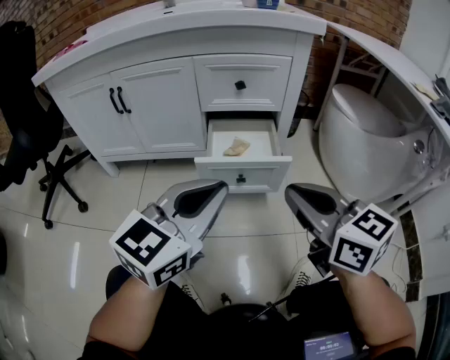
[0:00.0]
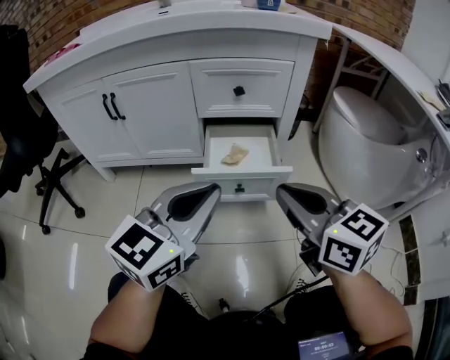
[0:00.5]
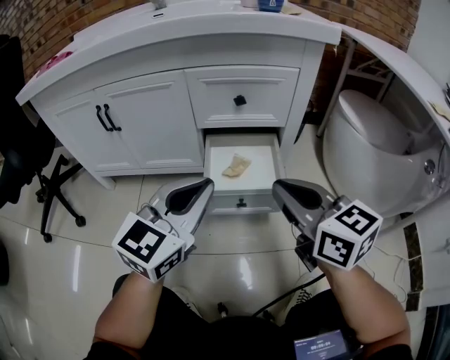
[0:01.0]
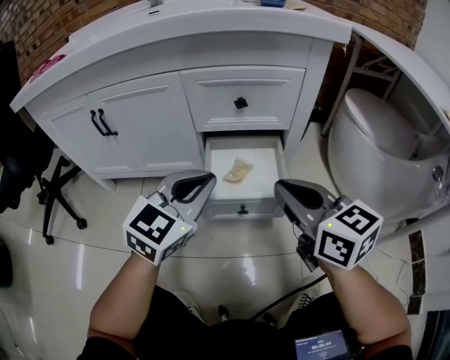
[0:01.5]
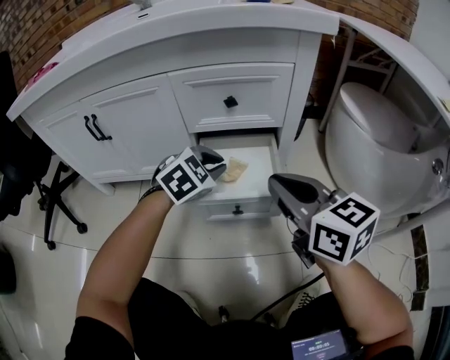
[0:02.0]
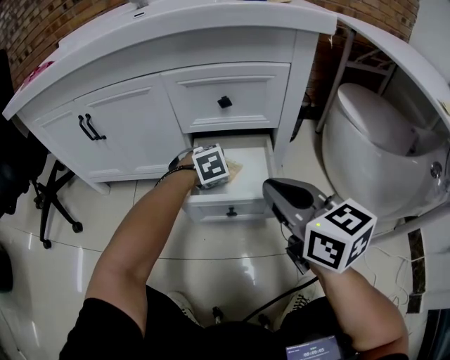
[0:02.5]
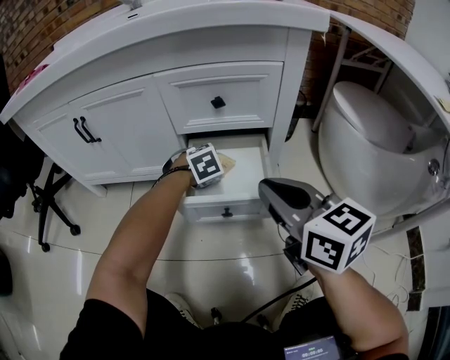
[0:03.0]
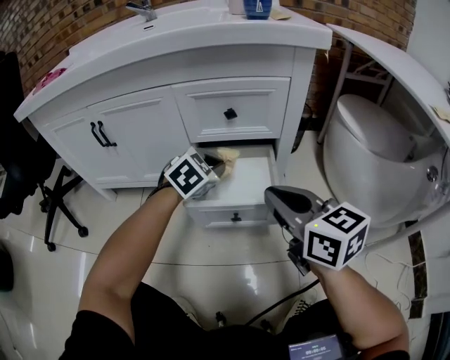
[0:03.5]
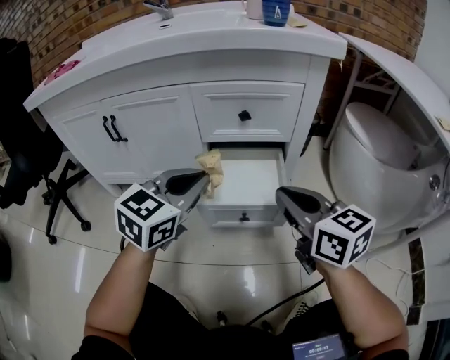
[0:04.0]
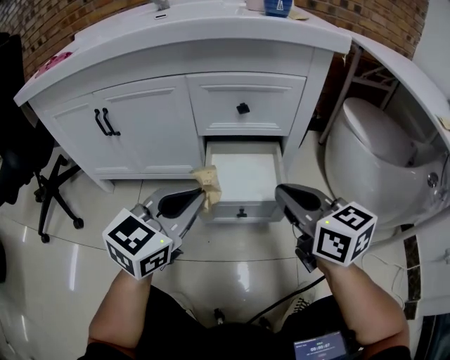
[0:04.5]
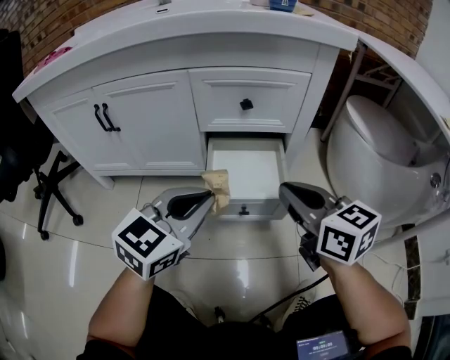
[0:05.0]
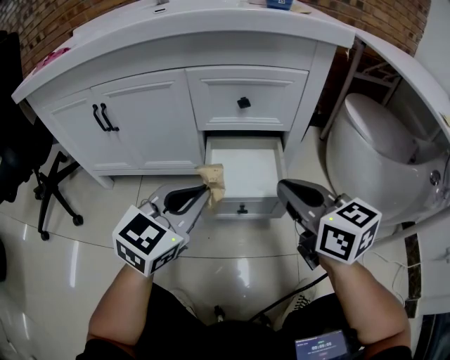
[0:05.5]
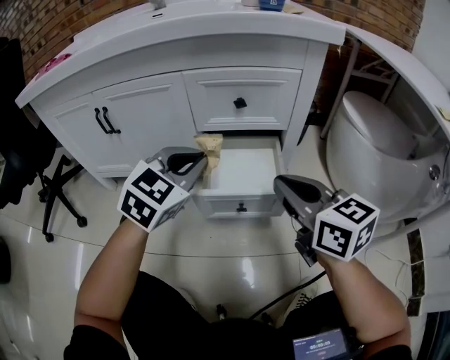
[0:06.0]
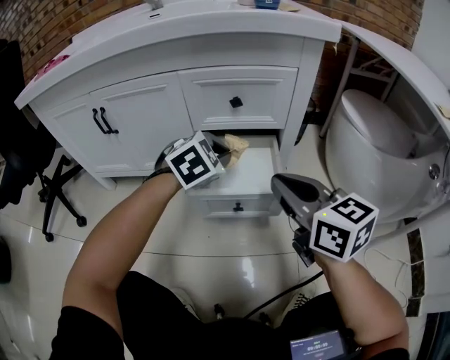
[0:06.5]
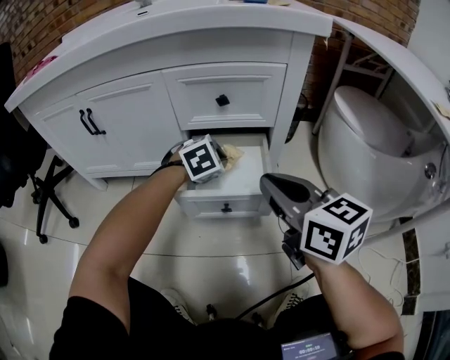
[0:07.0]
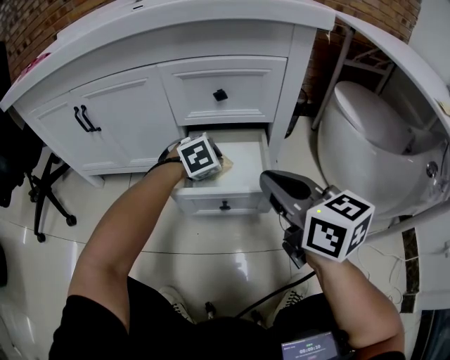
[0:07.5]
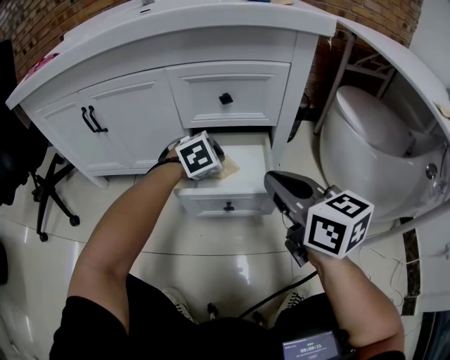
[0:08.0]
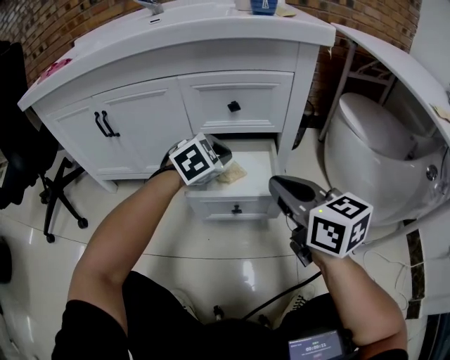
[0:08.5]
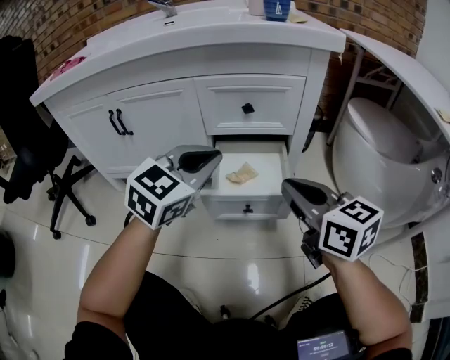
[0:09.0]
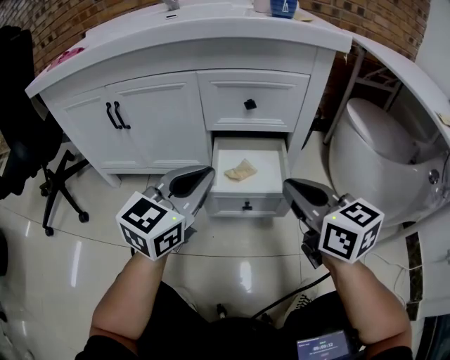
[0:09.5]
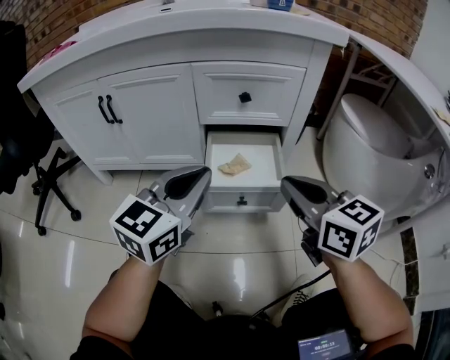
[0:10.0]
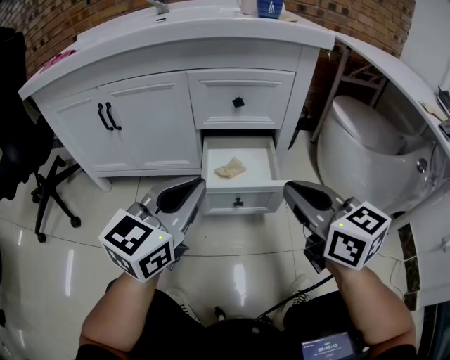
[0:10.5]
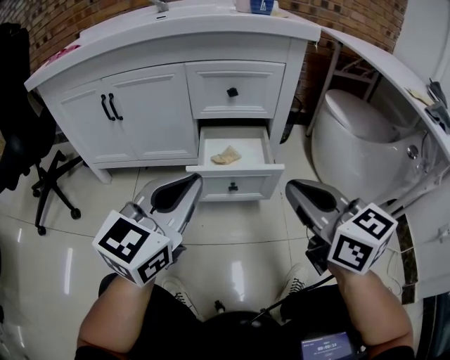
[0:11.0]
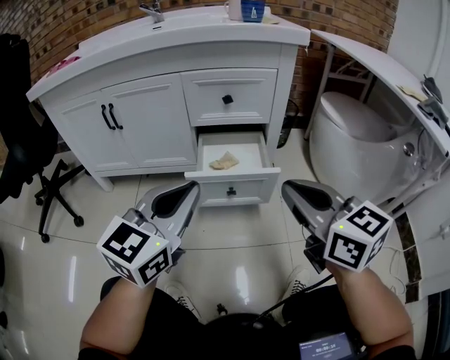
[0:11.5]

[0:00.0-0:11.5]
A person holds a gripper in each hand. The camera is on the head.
0.0 to 2.0 s: The left gripper moves forward and downward, some 30 cm, and tilts its fingers about 40 degrees downward. Meanwhile the right gripper goes approximately 15 cm forward.
2.0 to 4.0 s: The left gripper shifts about 15 cm upward, backward and to the left, and changes its angle by roughly 40 degrees.
4.0 to 6.0 s: The grippers move only a little.
6.0 to 7.5 s: The left gripper heads downward, forward and to the right, covering approximately 20 cm, and points its fingers roughly 30 degrees further downward.
7.5 to 9.5 s: The left gripper goes approximately 25 cm upward, backward and to the left, and tips its fingers upward by some 50 degrees.
9.5 to 11.5 s: Both grippers move backward, approximately 10 cm.

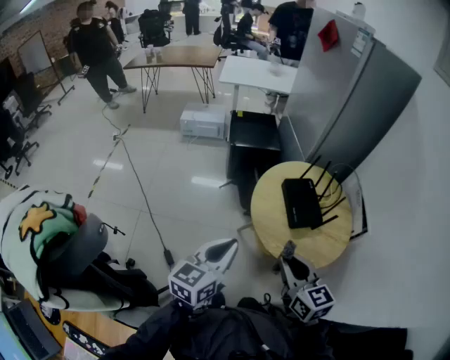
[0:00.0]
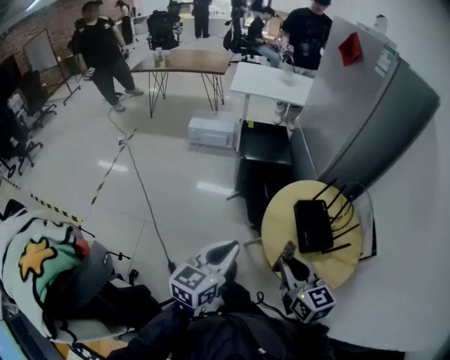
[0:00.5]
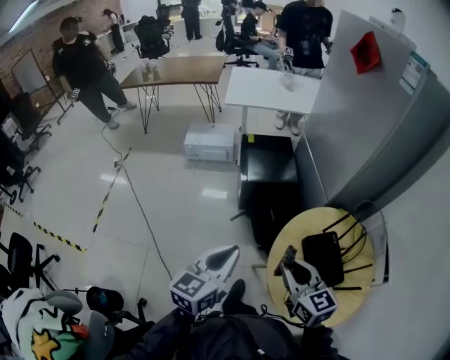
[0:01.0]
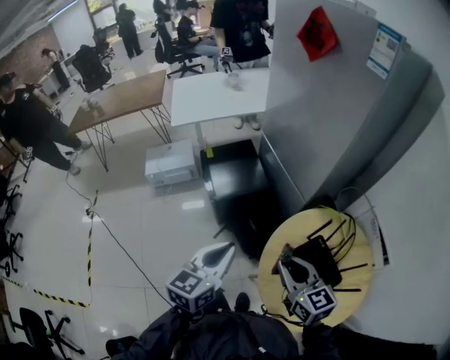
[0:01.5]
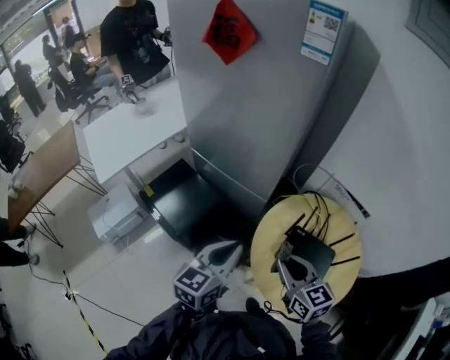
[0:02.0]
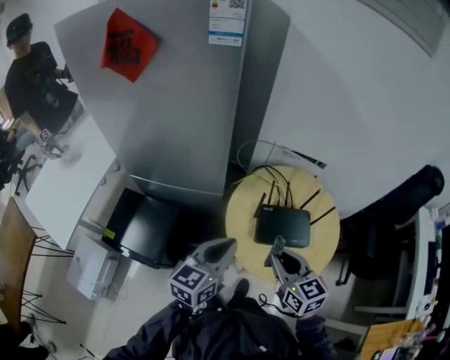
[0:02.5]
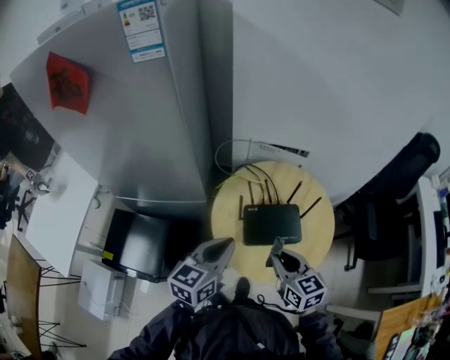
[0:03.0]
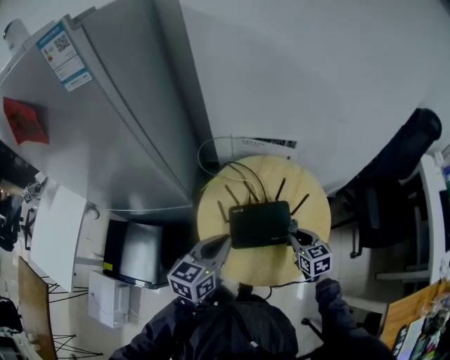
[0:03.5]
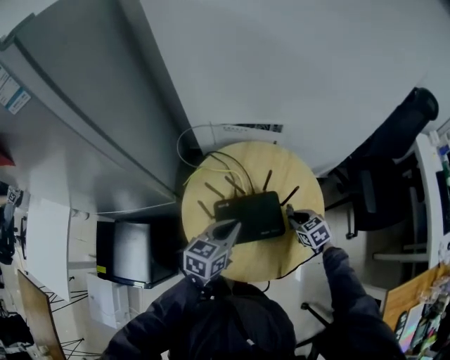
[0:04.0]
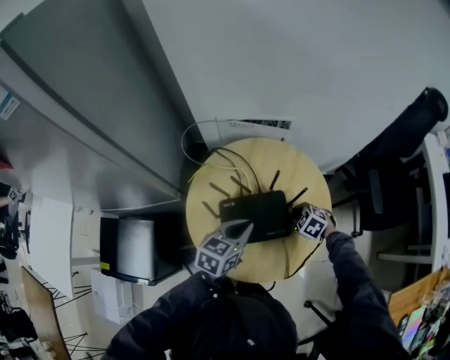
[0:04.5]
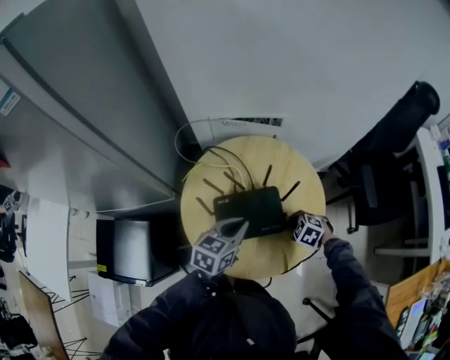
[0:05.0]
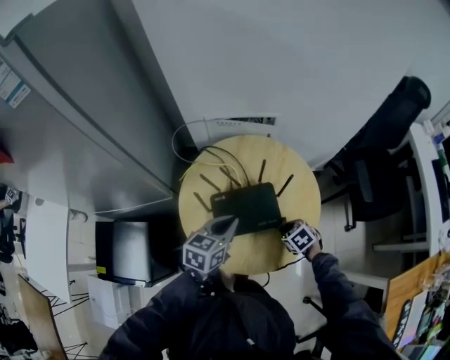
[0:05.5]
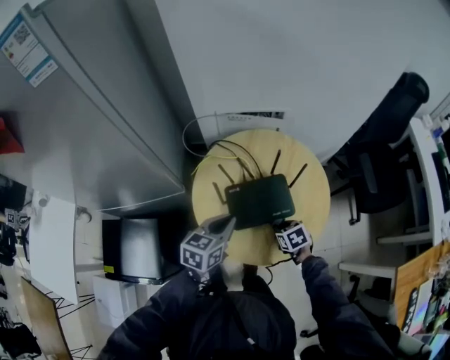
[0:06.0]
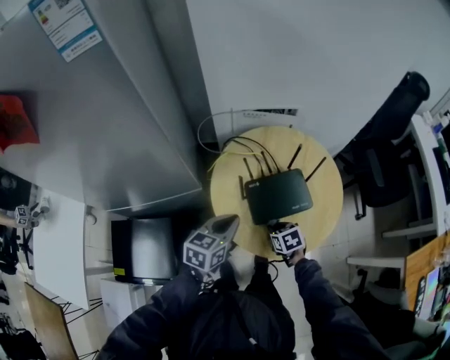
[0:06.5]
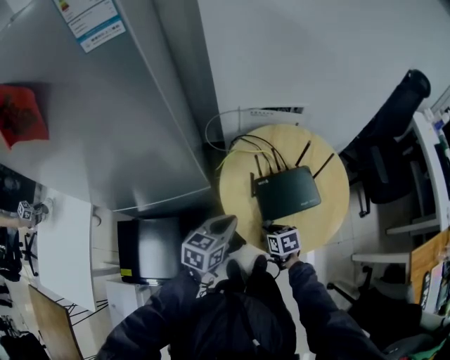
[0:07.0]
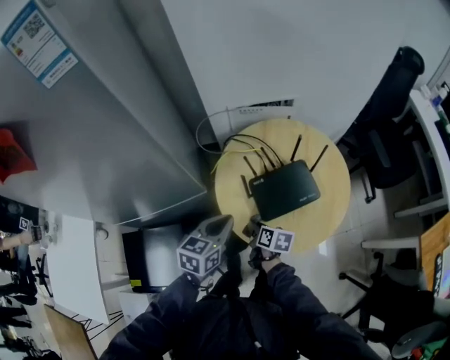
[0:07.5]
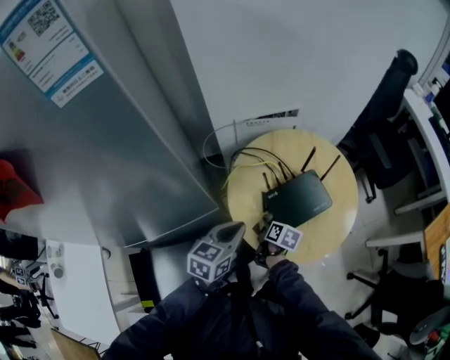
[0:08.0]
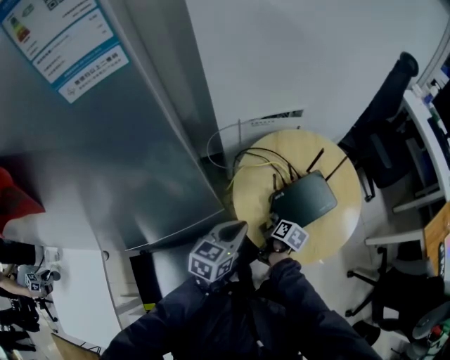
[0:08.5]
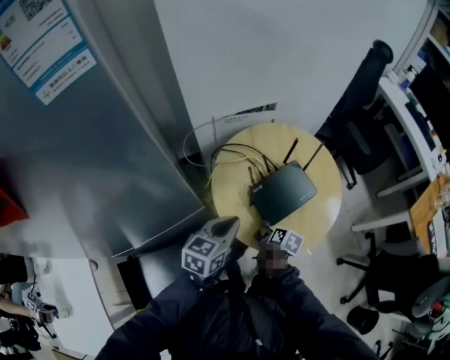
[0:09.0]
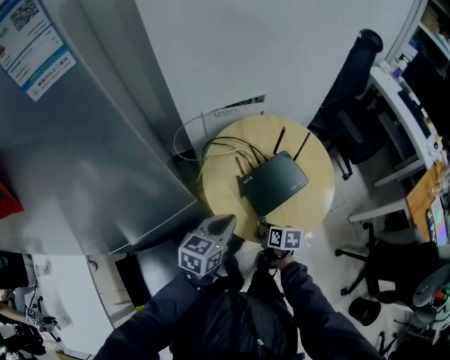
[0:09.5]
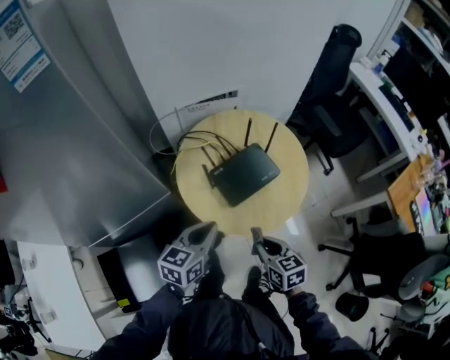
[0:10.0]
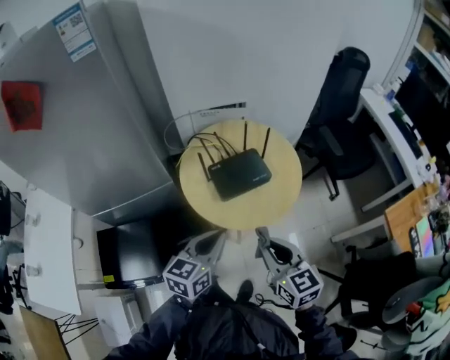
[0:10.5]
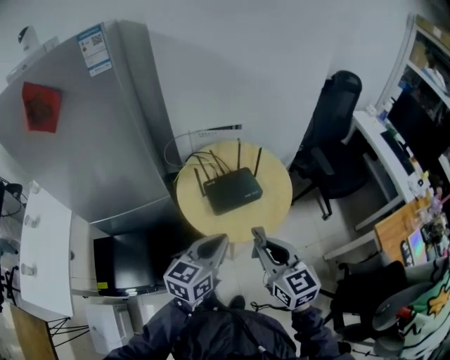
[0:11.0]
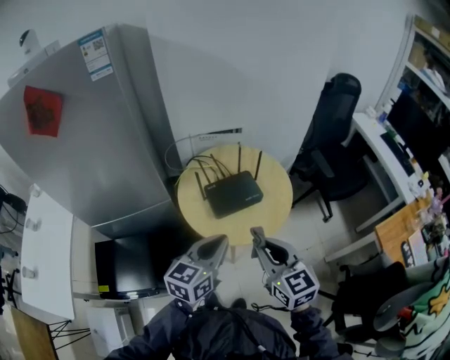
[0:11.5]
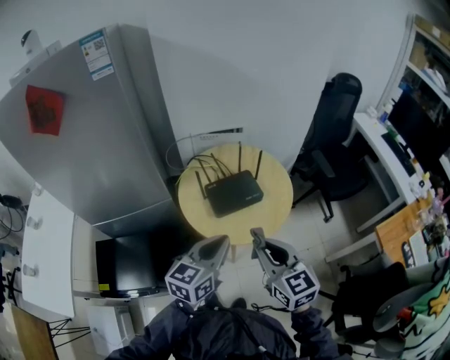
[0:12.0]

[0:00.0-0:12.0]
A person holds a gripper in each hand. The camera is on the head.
0.0 to 2.0 s: Both grippers are carried approximately 50 cm. The left gripper swivels about 50 degrees; the right gripper changes its angle by approximately 40 degrees.
2.0 to 4.0 s: The left gripper shifts by roughly 30 cm, and turns by approximately 50 degrees, while the right gripper changes place by roughly 40 cm, and tilts its fingers some 30 degrees downward.
4.0 to 6.0 s: The right gripper shifts approximately 15 cm to the left and backward; the left gripper moves to the left, about 5 cm.
6.0 to 8.0 s: The left gripper moves to the left, roughly 15 cm; the right gripper is displaced to the left by approximately 20 cm, and rotates around the line of its fingers by some 60 degrees, clockwise from behind.
8.0 to 10.0 s: The left gripper heads to the right and backward, covering some 10 cm. Meanwhile the right gripper travels backward, to the right and upward by about 25 cm, and swivels about 40 degrees.
10.0 to 12.0 s: The left gripper goes approximately 20 cm to the right, upward and backward. The right gripper goes approximately 20 cm upward, and swivels some 30 degrees.

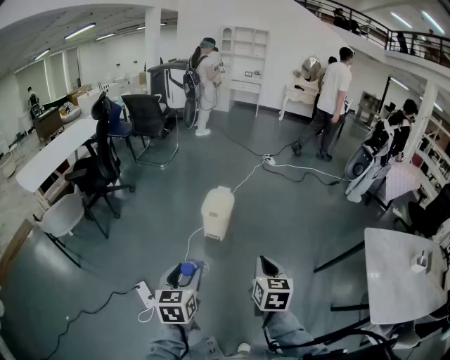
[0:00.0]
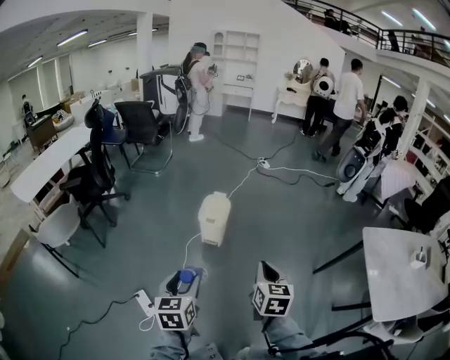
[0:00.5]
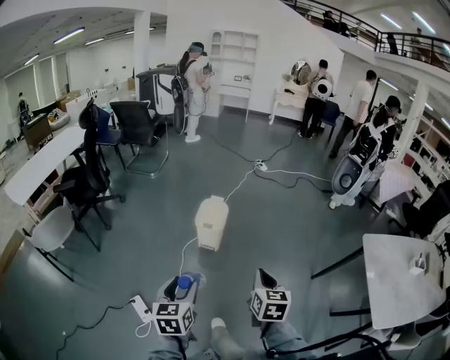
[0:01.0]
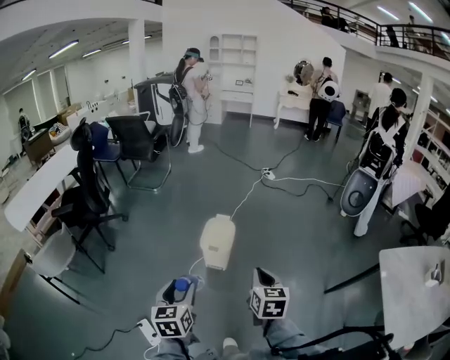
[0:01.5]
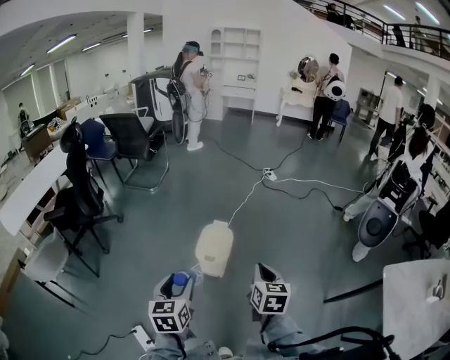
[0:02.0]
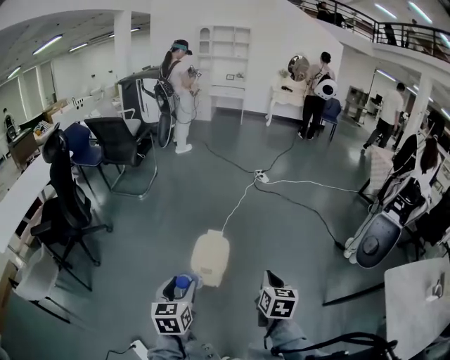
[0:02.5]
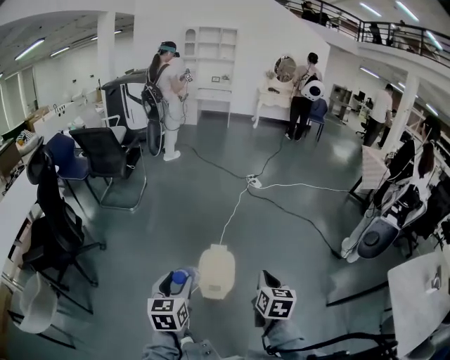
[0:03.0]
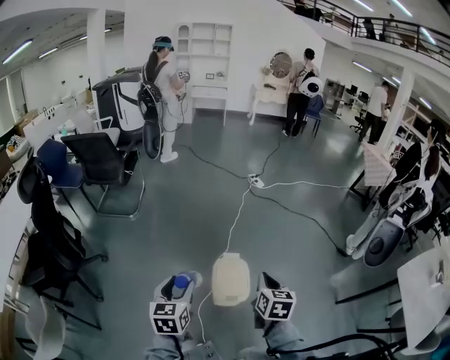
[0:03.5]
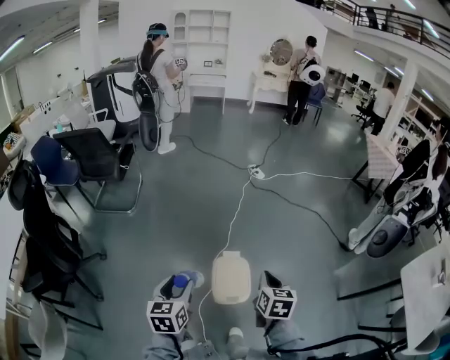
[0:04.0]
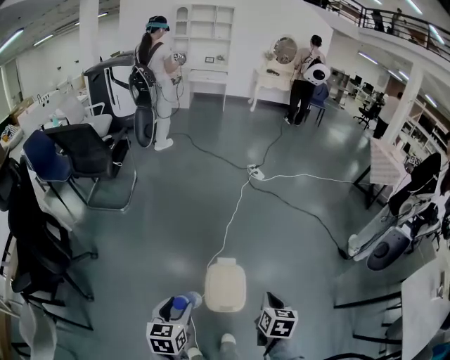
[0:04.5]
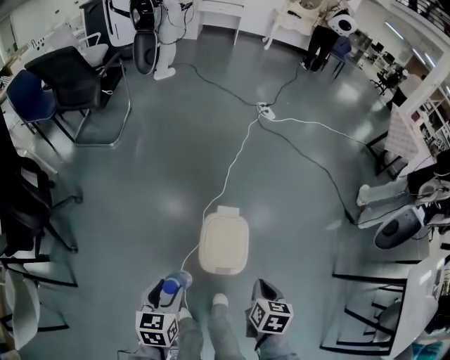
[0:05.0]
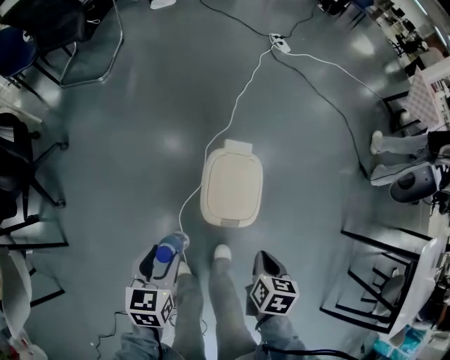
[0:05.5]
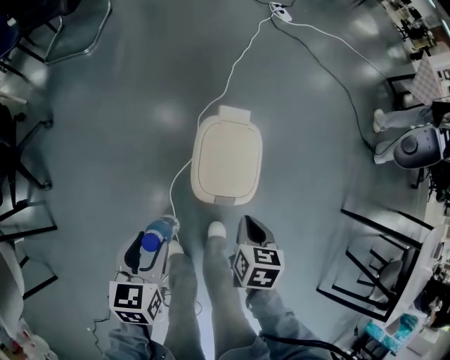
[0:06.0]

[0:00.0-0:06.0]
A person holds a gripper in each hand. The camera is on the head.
0.0 to 2.0 s: The two grippers go about 35 cm forward.
2.0 to 4.0 s: Both grippers move forward and to the left, roughly 35 cm.
4.0 to 6.0 s: The two grippers go about 35 cm downward. The right gripper changes its angle by some 20 degrees; the left gripper changes its angle by about 20 degrees.
